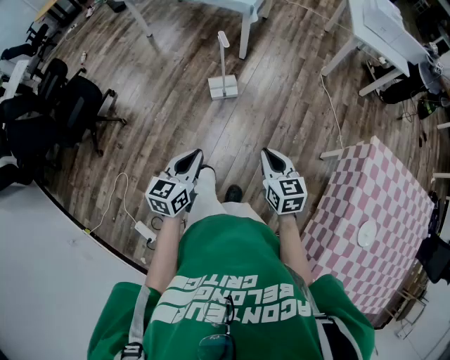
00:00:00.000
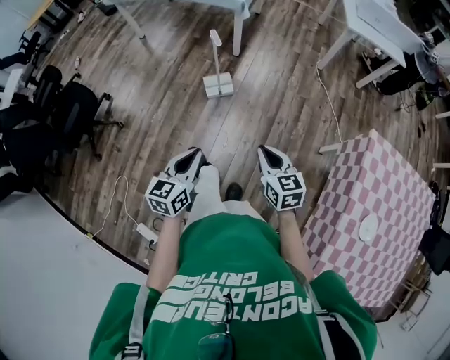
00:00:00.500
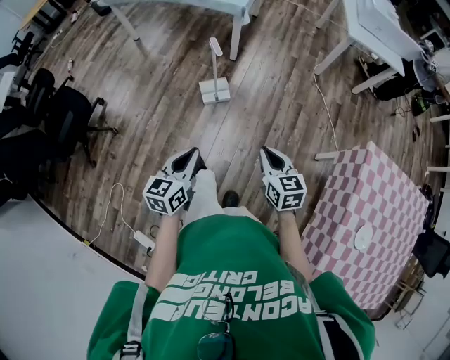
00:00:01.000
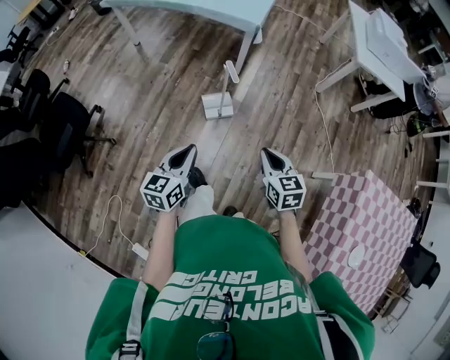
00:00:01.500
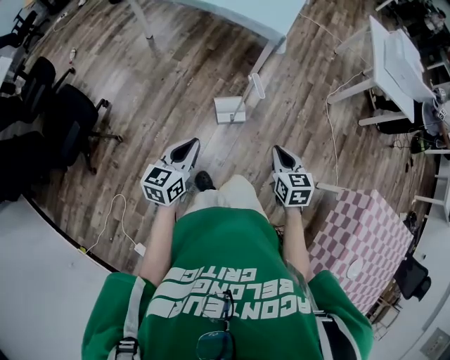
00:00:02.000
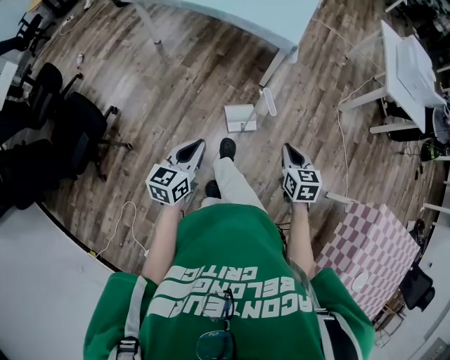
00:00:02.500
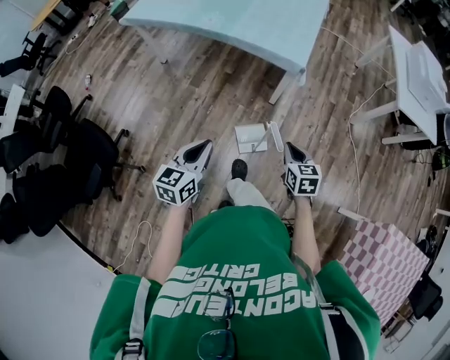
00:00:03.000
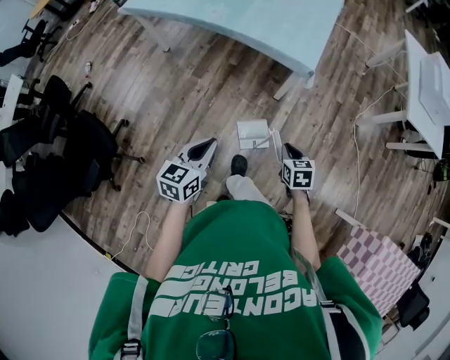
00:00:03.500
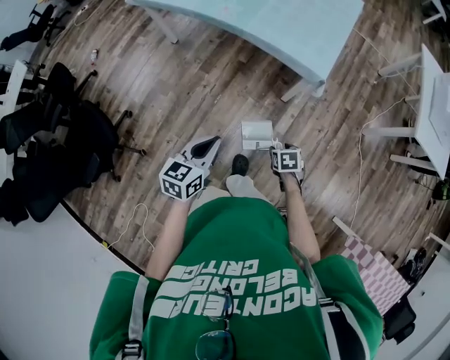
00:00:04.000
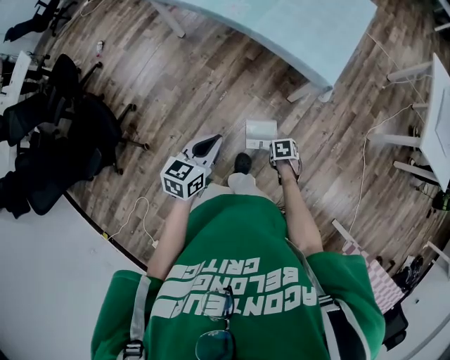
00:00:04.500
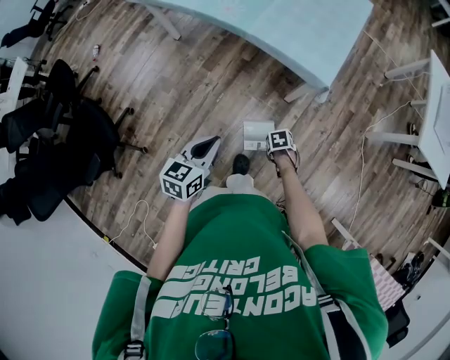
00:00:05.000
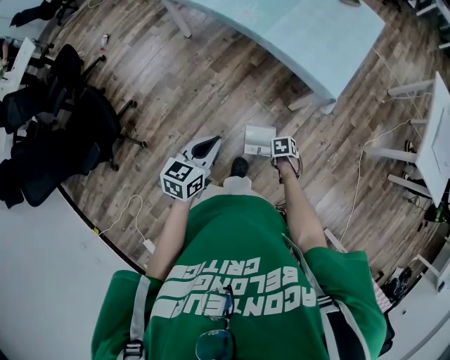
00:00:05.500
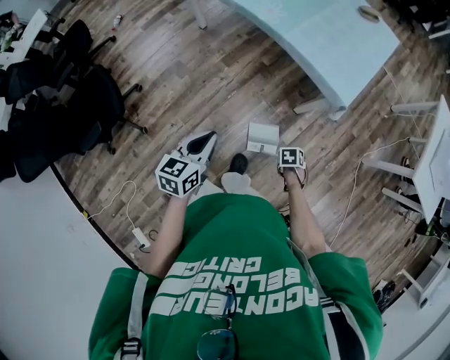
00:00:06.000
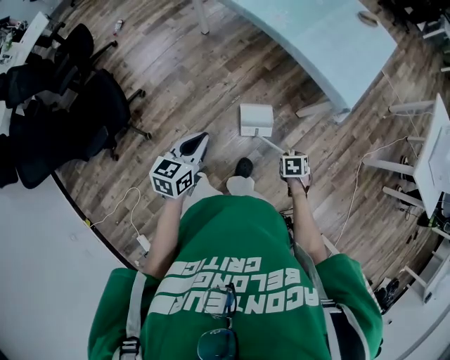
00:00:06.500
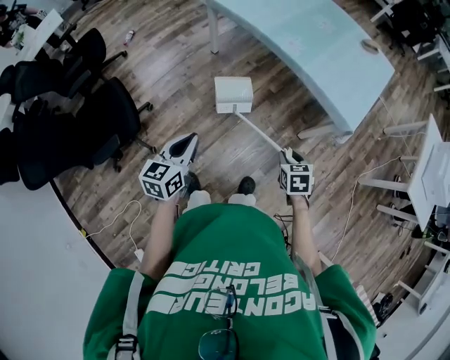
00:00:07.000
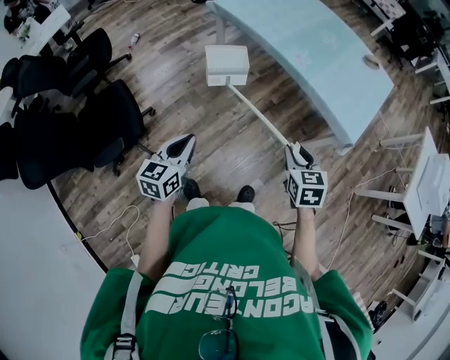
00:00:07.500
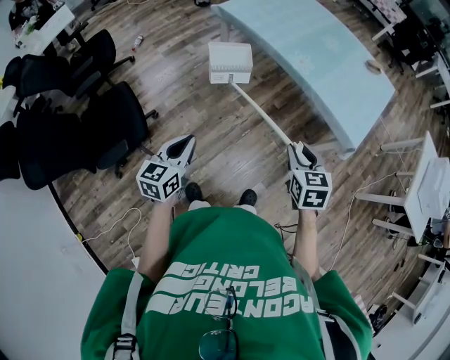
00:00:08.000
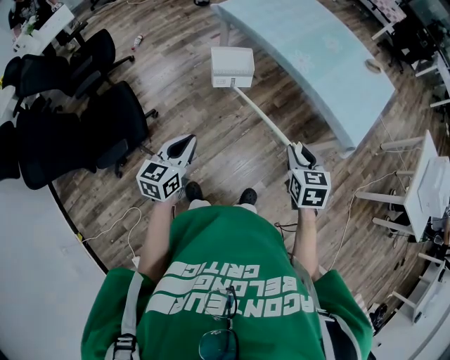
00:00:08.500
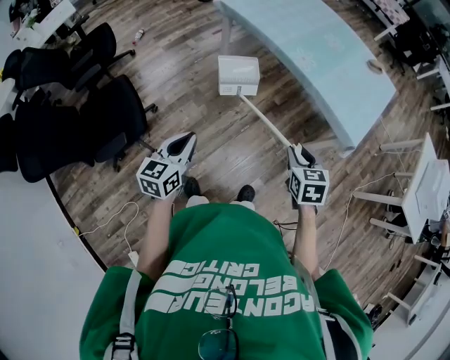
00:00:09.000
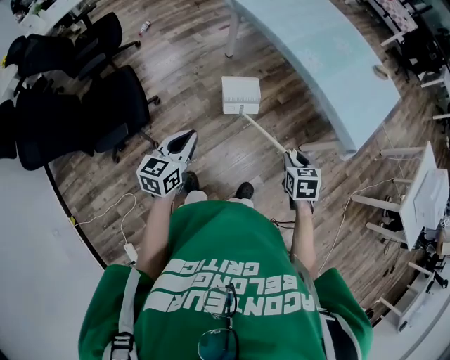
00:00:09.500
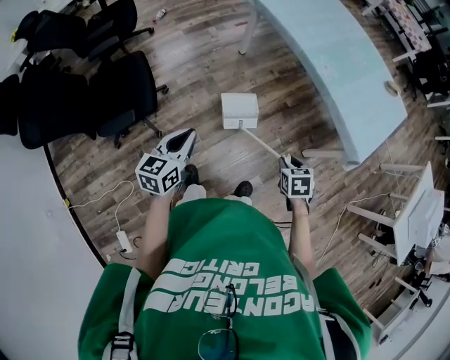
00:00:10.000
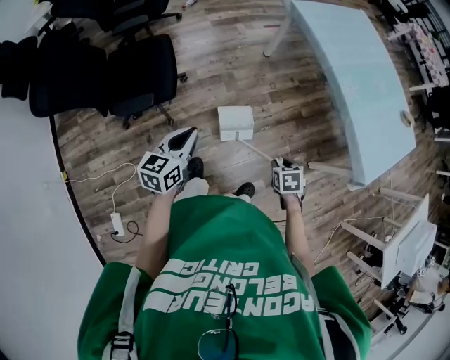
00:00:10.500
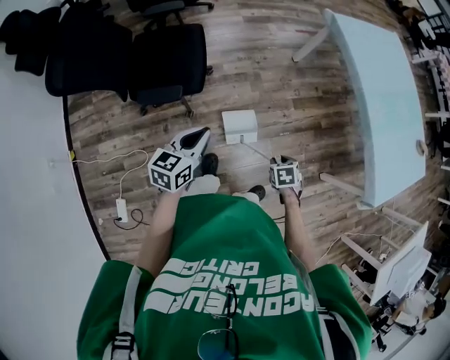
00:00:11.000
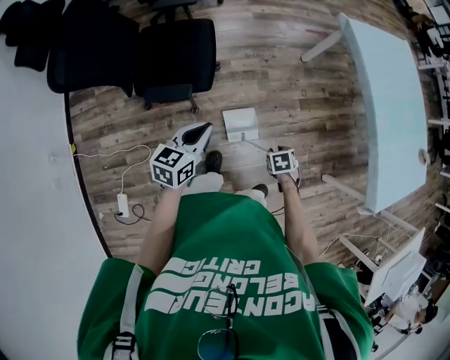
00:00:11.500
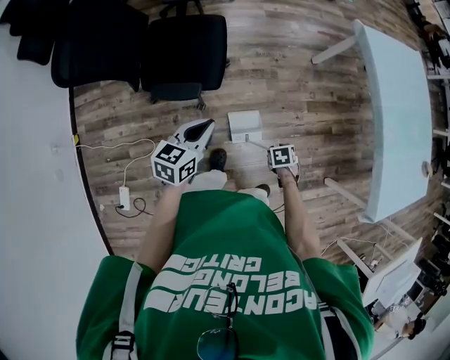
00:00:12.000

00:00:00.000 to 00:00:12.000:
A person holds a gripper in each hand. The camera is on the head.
00:00:00.000 to 00:00:02.000: The two grippers go roughly 35 cm forward and to the left.
00:00:02.000 to 00:00:04.000: The right gripper shifts roughly 40 cm forward and downward, points its fingers some 30 degrees further downward, and opens up. The left gripper goes some 30 cm forward.
00:00:04.000 to 00:00:06.000: The left gripper ends up some 10 cm from where it was; the right gripper moves downward, about 5 cm, rotates approximately 20 degrees, and closes.
00:00:06.000 to 00:00:08.000: The left gripper shifts by some 30 cm; the right gripper travels upward by about 35 cm, and tips its fingers upward by some 50 degrees.
00:00:08.000 to 00:00:10.000: The right gripper heads downward, covering some 15 cm, and turns by about 20 degrees; the left gripper ends up roughly 5 cm from where it was.
00:00:10.000 to 00:00:12.000: The right gripper ends up approximately 35 cm from where it was, and swivels approximately 30 degrees; the left gripper ends up about 25 cm from where it was.

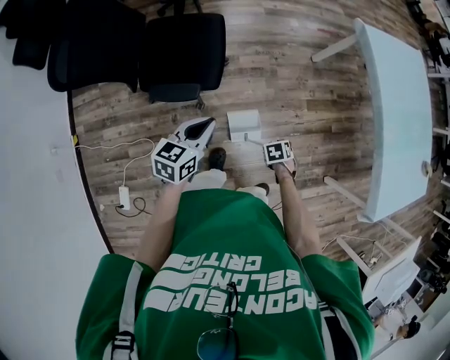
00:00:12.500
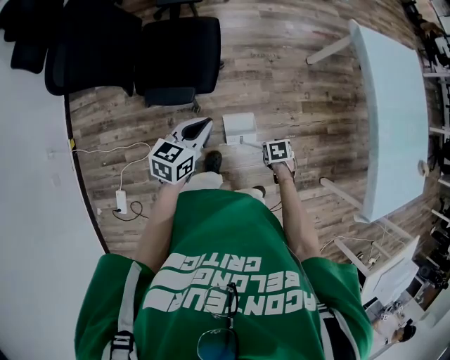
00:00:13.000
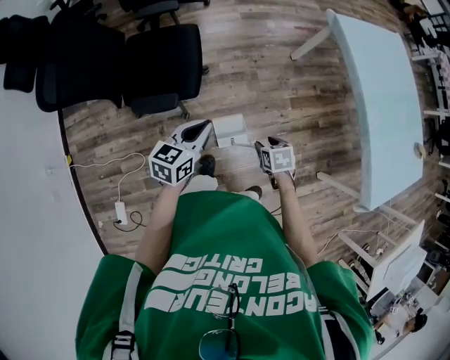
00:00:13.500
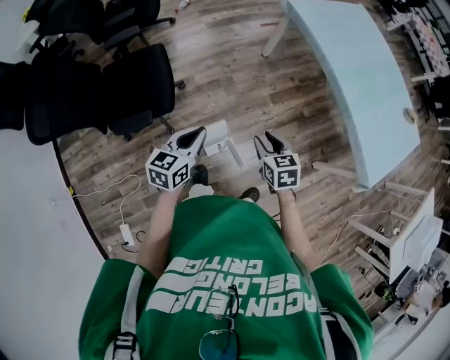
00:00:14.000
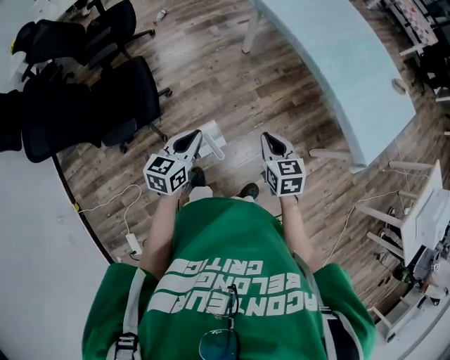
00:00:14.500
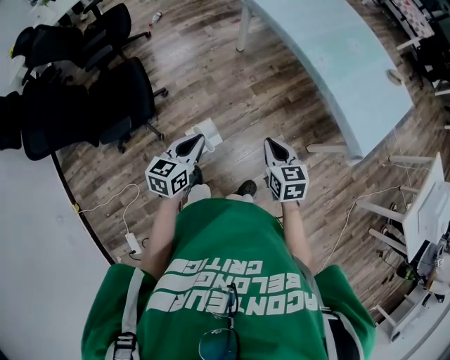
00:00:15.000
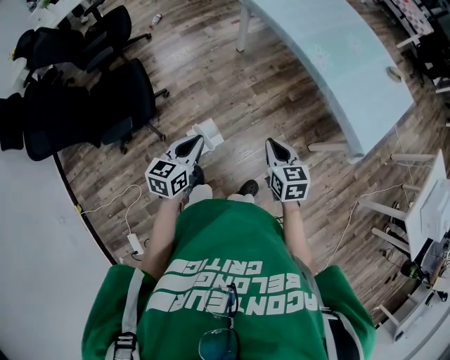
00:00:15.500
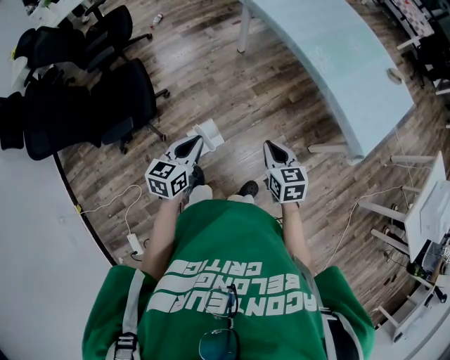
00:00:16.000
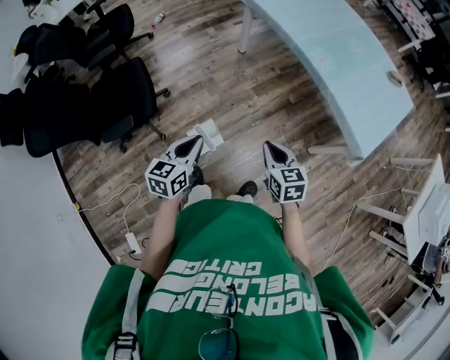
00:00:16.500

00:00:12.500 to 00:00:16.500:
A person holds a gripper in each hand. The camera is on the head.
00:00:12.500 to 00:00:14.500: The right gripper moves upward, some 30 cm, angles its fingers upward, by about 50 degrees, and closes. The left gripper ends up approximately 25 cm from where it was.
00:00:14.500 to 00:00:16.500: The right gripper shifts some 10 cm backward and to the right, while the left gripper moves roughly 5 cm.

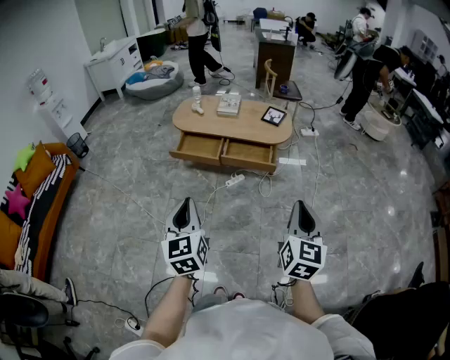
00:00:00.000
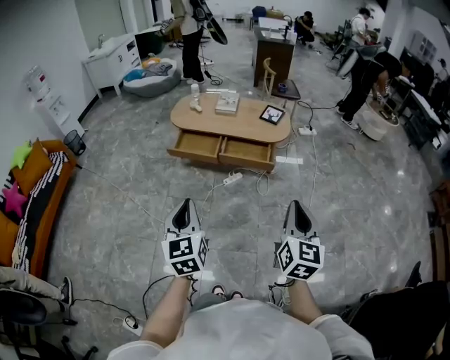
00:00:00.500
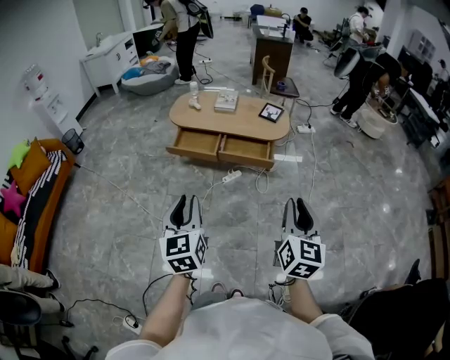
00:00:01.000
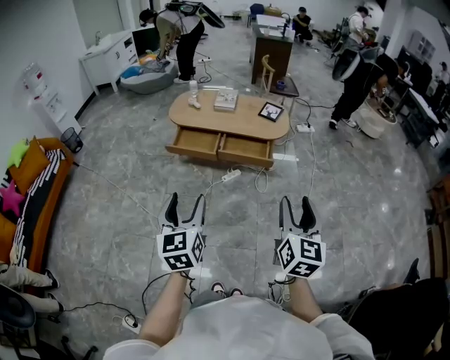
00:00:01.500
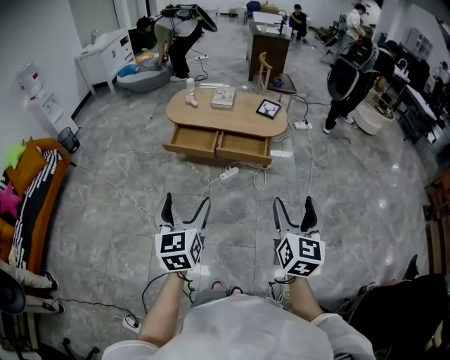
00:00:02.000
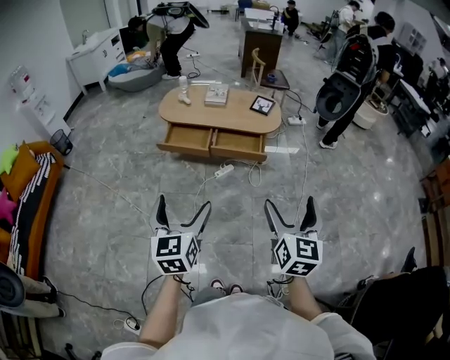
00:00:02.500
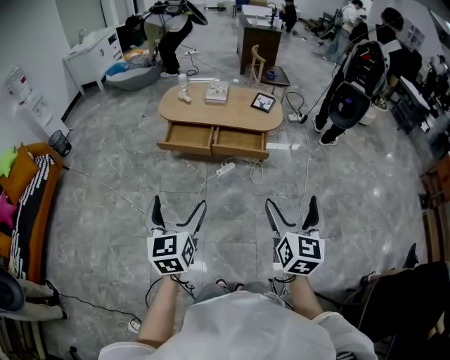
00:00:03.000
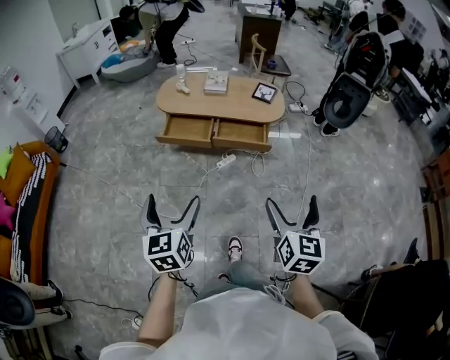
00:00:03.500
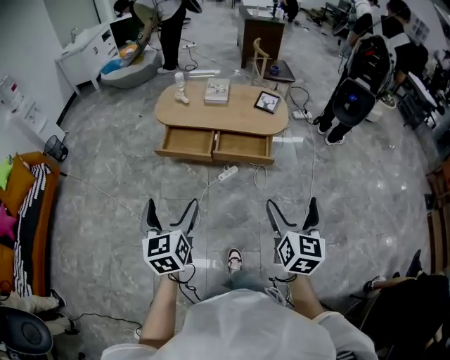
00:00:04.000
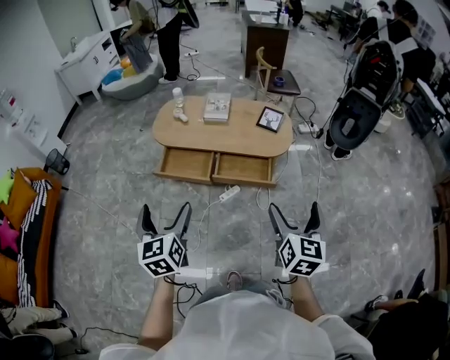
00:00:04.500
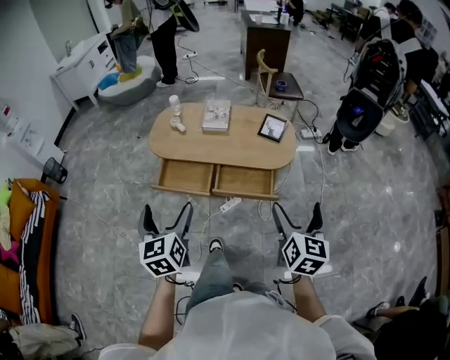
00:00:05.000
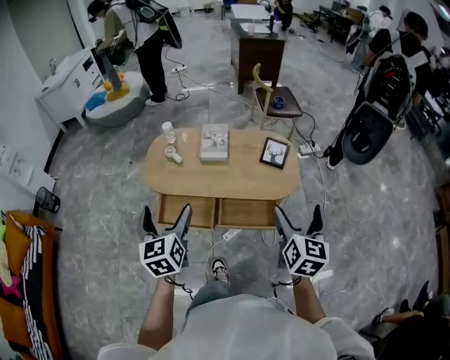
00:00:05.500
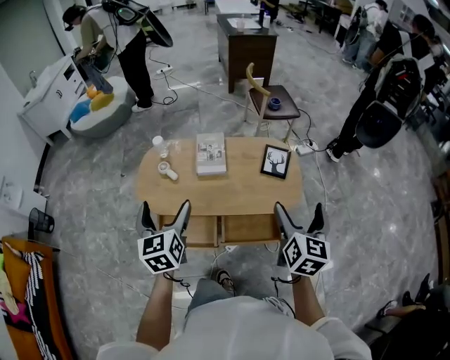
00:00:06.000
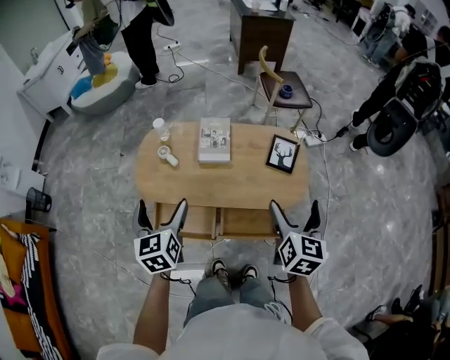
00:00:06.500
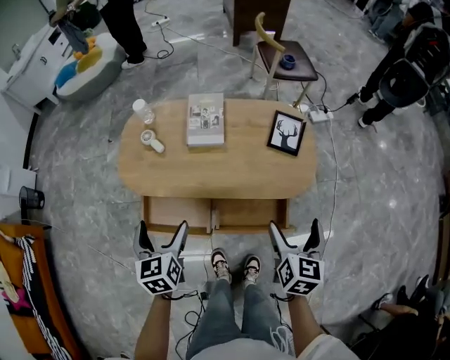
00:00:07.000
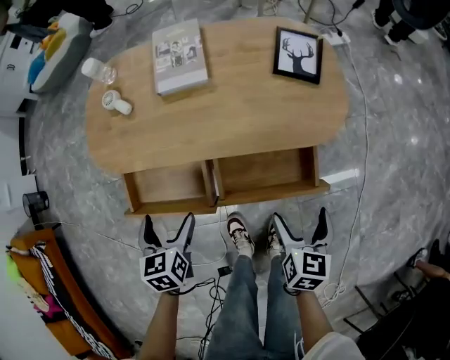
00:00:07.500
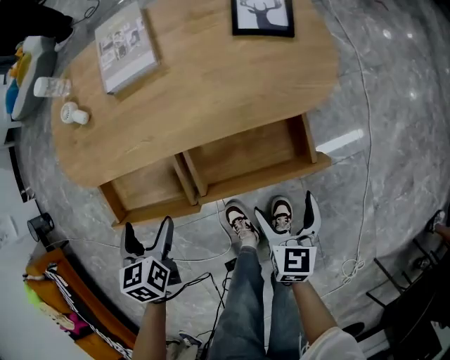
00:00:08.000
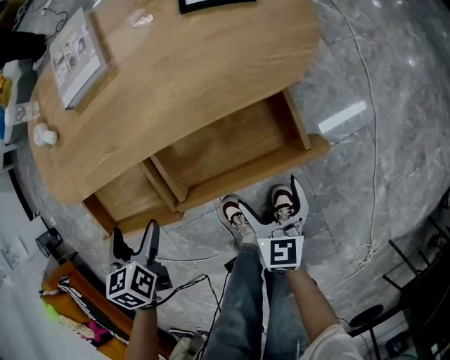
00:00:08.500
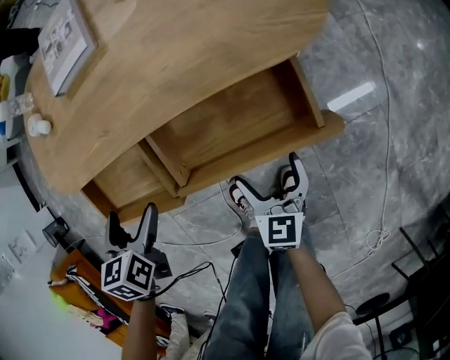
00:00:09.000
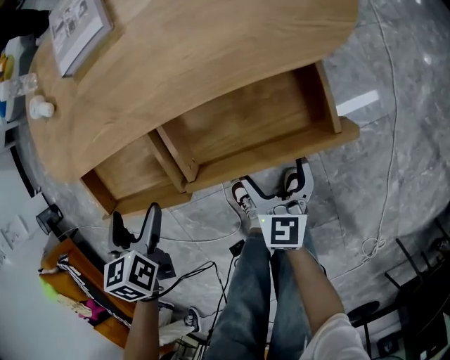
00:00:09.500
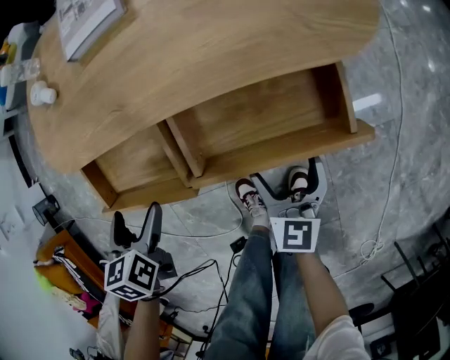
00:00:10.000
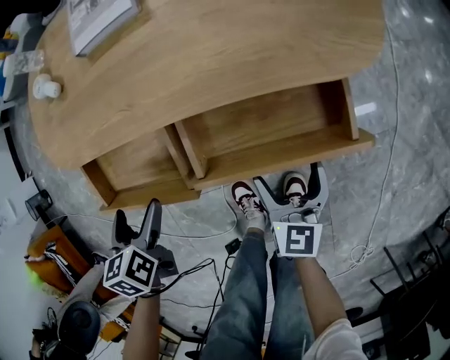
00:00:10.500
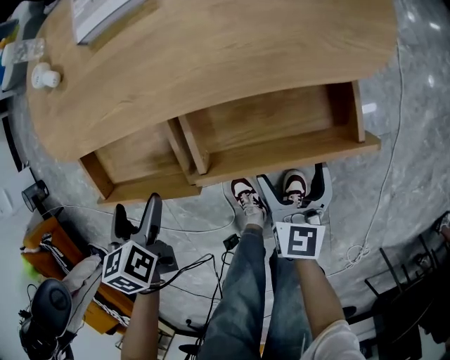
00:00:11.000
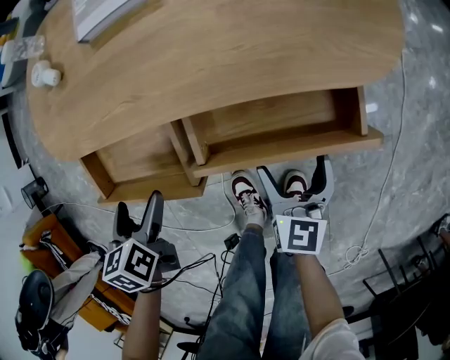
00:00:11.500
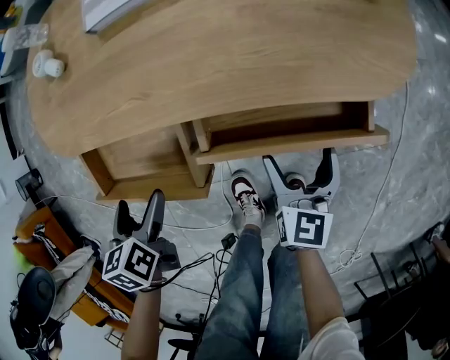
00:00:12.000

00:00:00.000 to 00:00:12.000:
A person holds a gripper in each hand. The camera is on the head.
00:00:00.000 to 00:00:02.000: The left gripper opens up, while the right gripper opens its fingers.
00:00:02.000 to 00:00:04.000: The left gripper moves forward and to the left, about 15 cm. The right gripper is displaced forward by about 15 cm.
00:00:04.000 to 00:00:06.000: The two grippers travel together, forward, roughly 60 cm.
00:00:06.000 to 00:00:08.000: The grippers both shift downward by some 50 cm. The left gripper tilts its fingers approximately 30 degrees downward; the right gripper swivels about 20 degrees.
00:00:08.000 to 00:00:10.000: The grippers both shift downward by some 5 cm.
00:00:10.000 to 00:00:12.000: The right gripper moves forward, about 5 cm.
